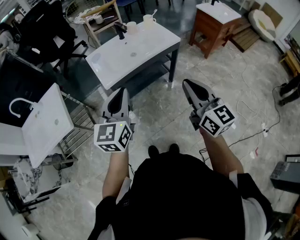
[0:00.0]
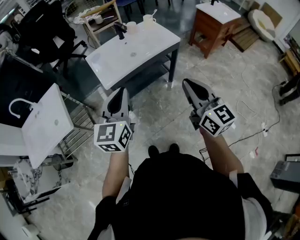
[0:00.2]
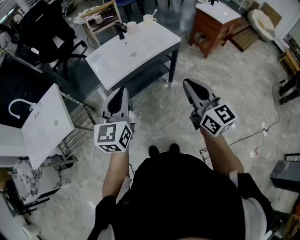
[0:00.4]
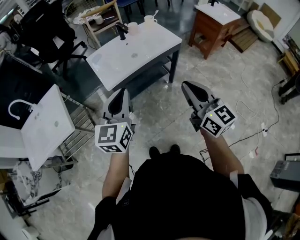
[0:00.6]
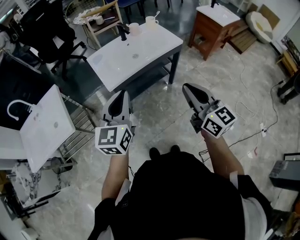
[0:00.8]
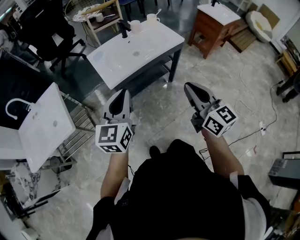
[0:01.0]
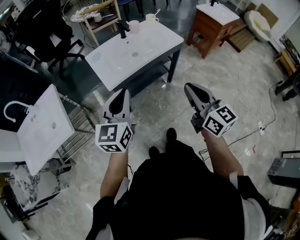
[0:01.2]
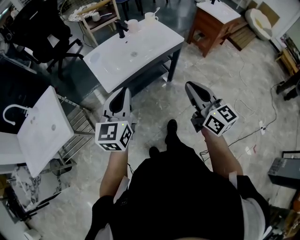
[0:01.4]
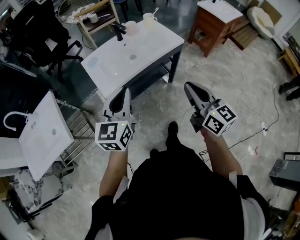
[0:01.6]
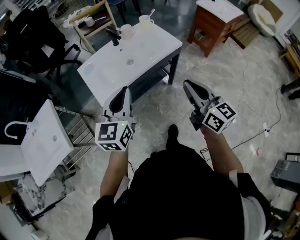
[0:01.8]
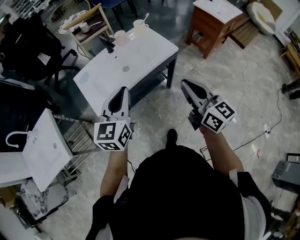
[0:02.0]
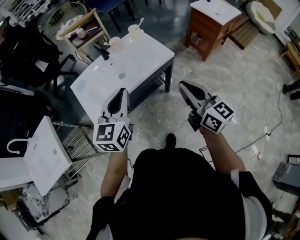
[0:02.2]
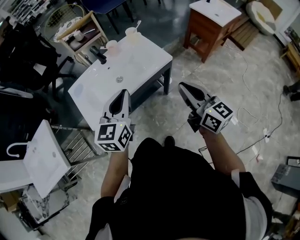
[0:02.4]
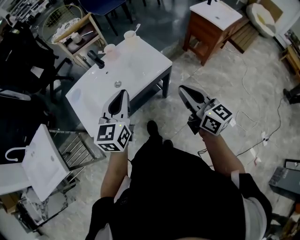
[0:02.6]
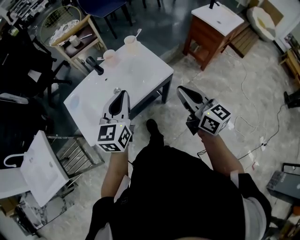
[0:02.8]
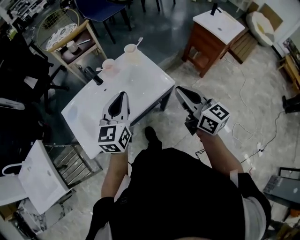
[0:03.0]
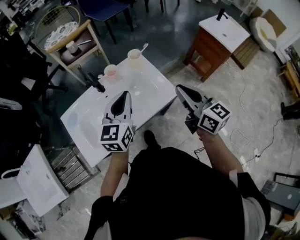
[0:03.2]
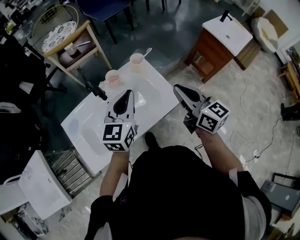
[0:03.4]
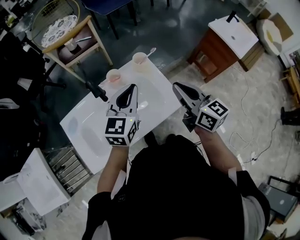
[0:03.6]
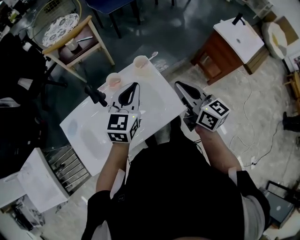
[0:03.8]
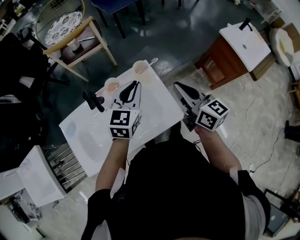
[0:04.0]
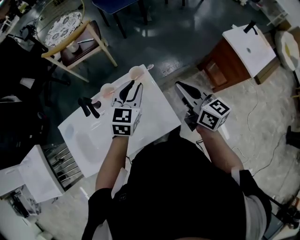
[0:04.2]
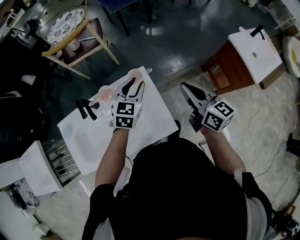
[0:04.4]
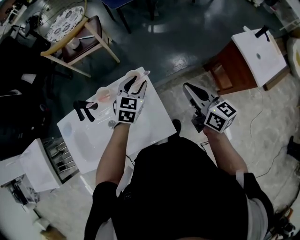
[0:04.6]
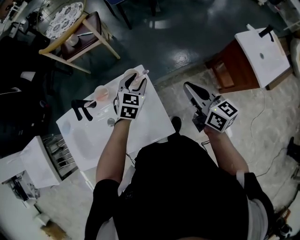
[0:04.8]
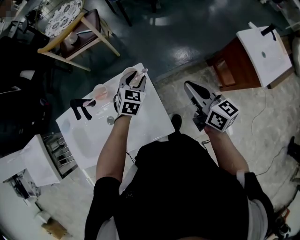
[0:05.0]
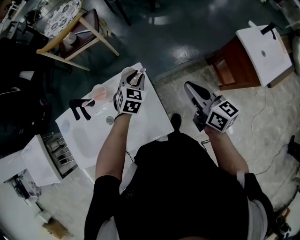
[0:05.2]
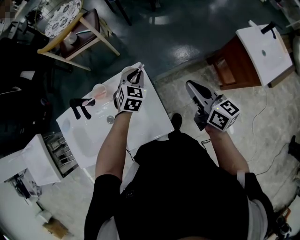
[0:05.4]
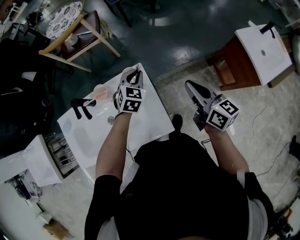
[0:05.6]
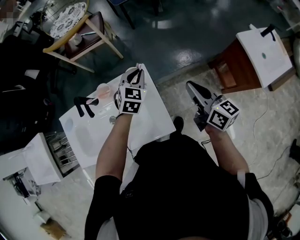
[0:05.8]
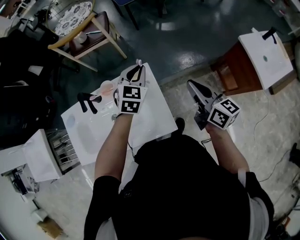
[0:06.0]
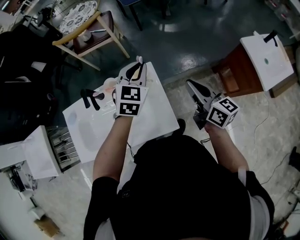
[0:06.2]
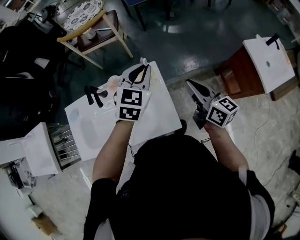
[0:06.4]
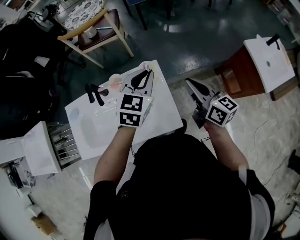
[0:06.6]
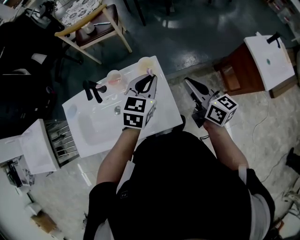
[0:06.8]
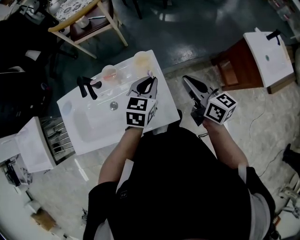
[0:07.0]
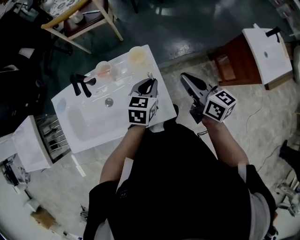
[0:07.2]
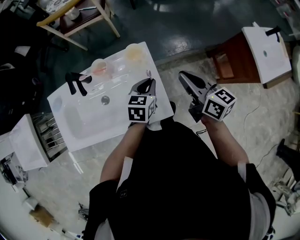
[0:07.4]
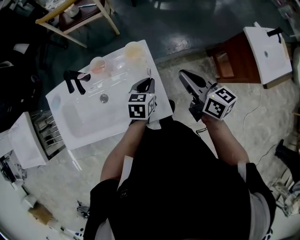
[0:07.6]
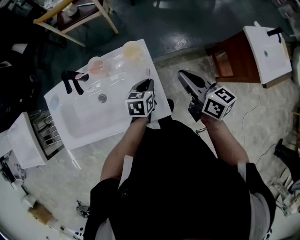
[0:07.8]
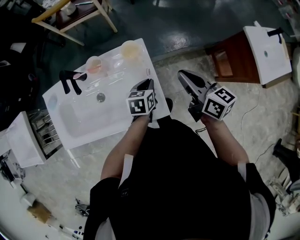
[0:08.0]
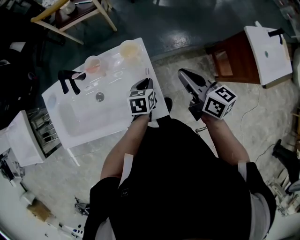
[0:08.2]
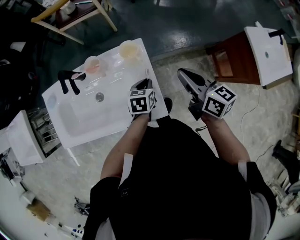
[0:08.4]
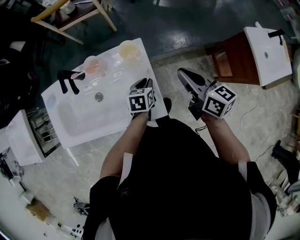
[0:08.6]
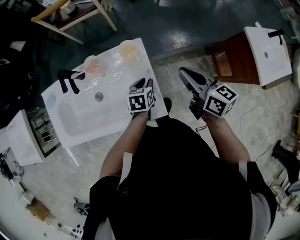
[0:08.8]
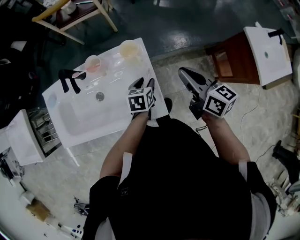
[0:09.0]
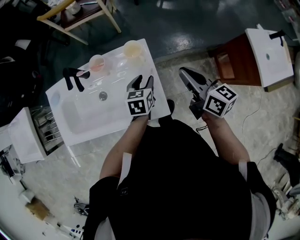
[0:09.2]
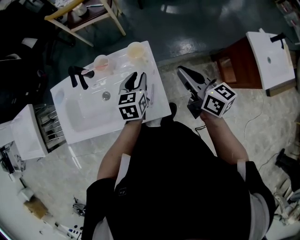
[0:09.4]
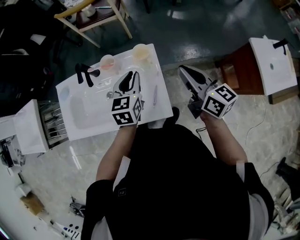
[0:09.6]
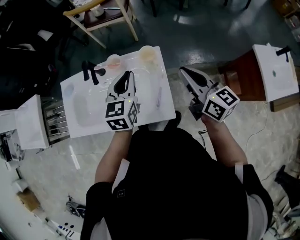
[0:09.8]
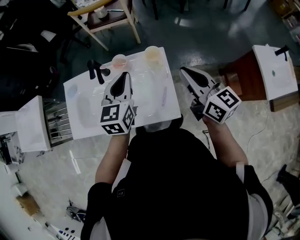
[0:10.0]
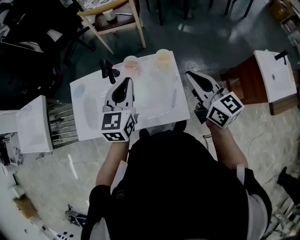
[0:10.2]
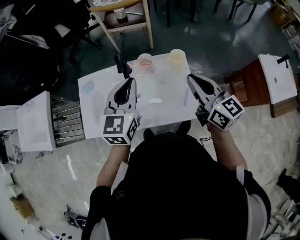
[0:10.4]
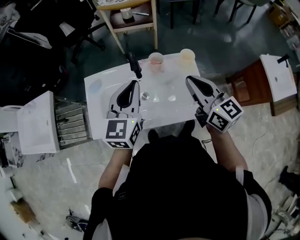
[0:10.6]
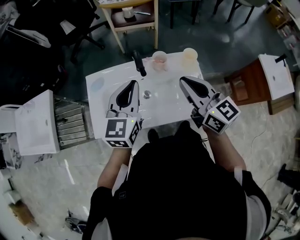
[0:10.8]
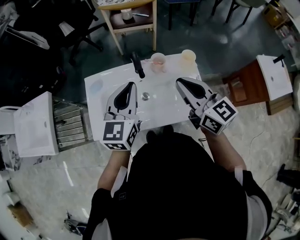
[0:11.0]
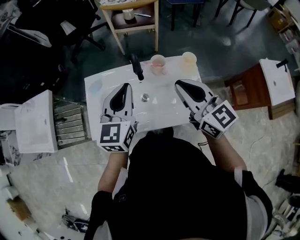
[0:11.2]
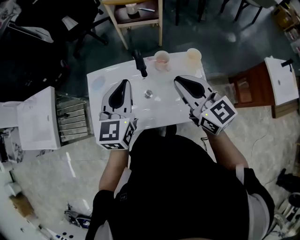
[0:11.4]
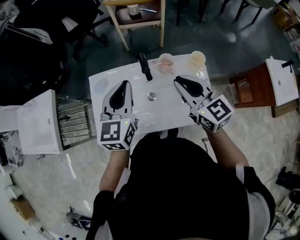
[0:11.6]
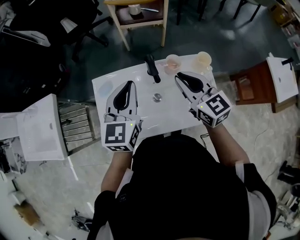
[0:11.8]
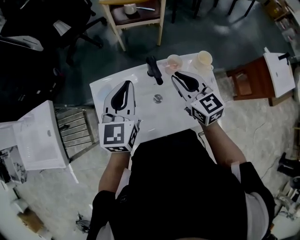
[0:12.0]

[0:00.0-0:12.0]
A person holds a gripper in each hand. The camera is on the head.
0:00.0 to 0:01.6: Both grippers move forward, approximately 10 cm.
0:01.6 to 0:03.0: The grippers both shift forward and to the right by roughly 35 cm.
0:03.0 to 0:04.4: The right gripper shifts some 35 cm forward; the left gripper shifts approximately 35 cm forward and to the right, turns by approximately 20 degrees, and opens up.
0:04.4 to 0:06.0: The left gripper travels downward and back again, about 10 cm each way, and closes.
0:06.0 to 0:07.6: The left gripper shifts some 20 cm downward and backward, and turns by about 40 degrees. Meanwhile the right gripper ends up about 5 cm from where it was.
0:07.6 to 0:09.0: The left gripper is displaced downward by about 5 cm, and opens its fingers.
0:09.0 to 0:10.4: The right gripper heads to the left and upward, covering some 25 cm, and rotates roughly 20 degrees. The left gripper travels upward and to the left by approximately 40 cm, angles its fingers upward, by approximately 40 degrees, and closes up.
0:10.4 to 0:12.0: Both grippers move to the left and forward, approximately 20 cm.

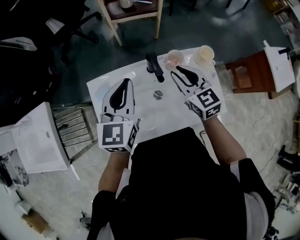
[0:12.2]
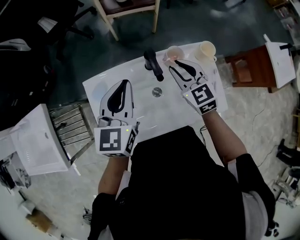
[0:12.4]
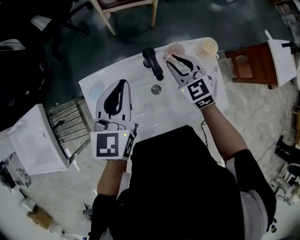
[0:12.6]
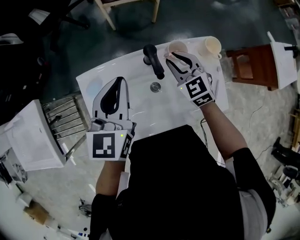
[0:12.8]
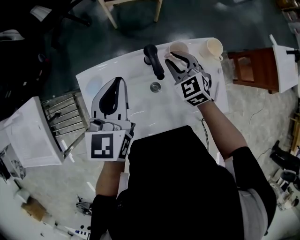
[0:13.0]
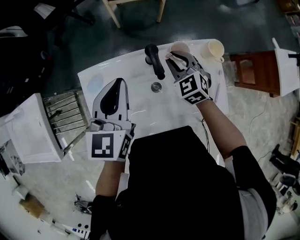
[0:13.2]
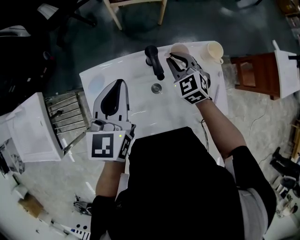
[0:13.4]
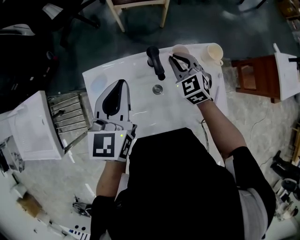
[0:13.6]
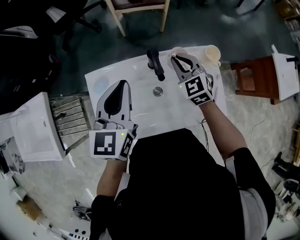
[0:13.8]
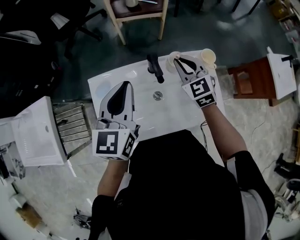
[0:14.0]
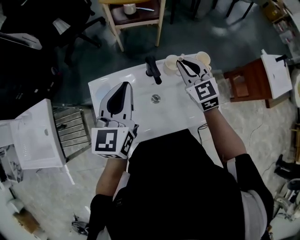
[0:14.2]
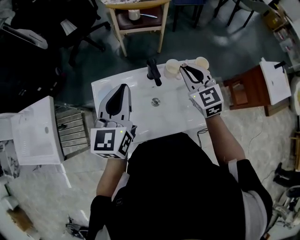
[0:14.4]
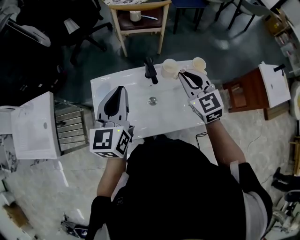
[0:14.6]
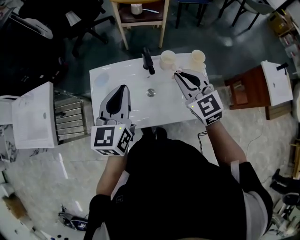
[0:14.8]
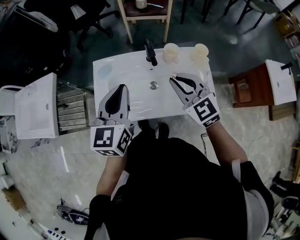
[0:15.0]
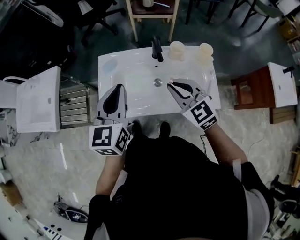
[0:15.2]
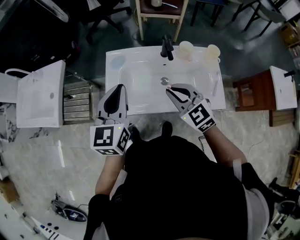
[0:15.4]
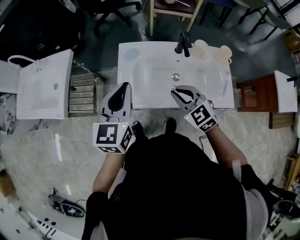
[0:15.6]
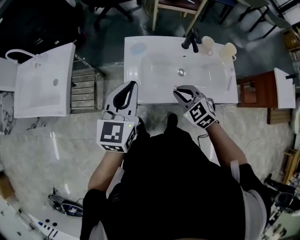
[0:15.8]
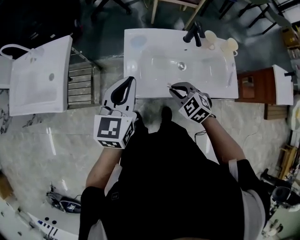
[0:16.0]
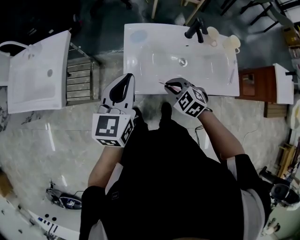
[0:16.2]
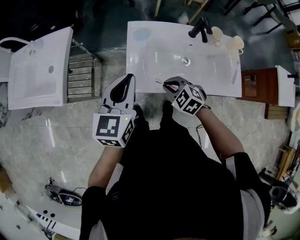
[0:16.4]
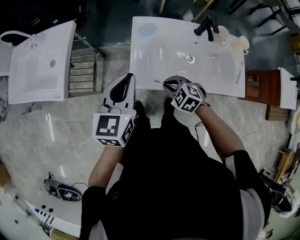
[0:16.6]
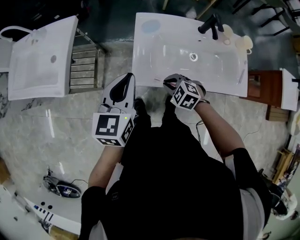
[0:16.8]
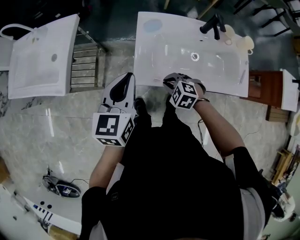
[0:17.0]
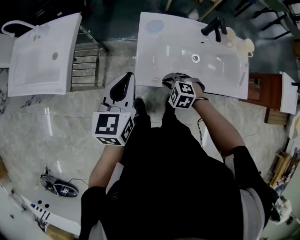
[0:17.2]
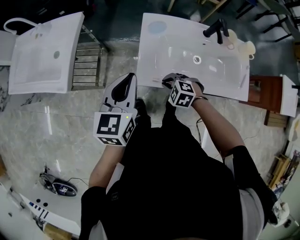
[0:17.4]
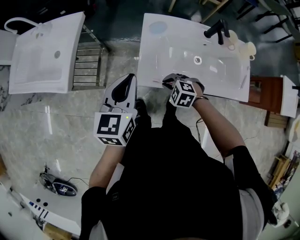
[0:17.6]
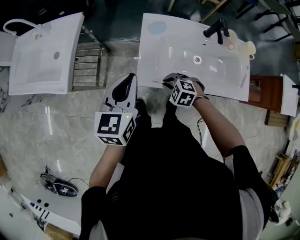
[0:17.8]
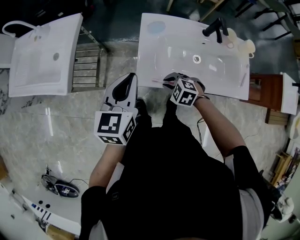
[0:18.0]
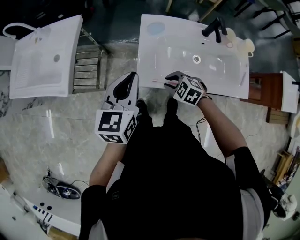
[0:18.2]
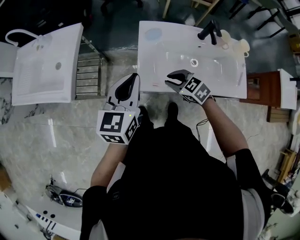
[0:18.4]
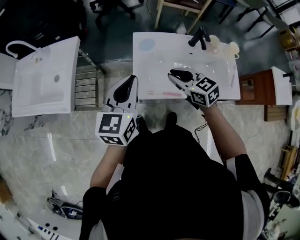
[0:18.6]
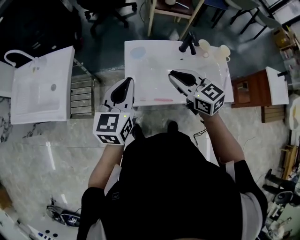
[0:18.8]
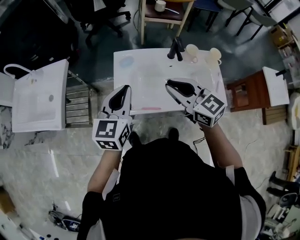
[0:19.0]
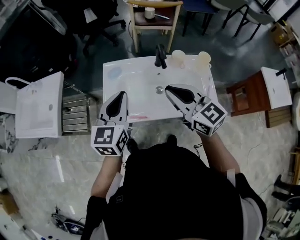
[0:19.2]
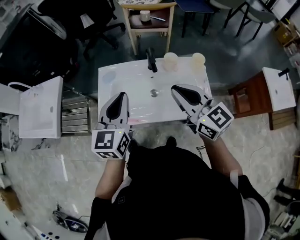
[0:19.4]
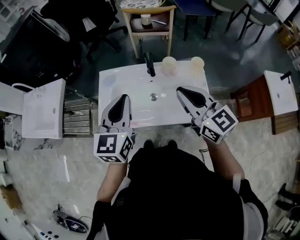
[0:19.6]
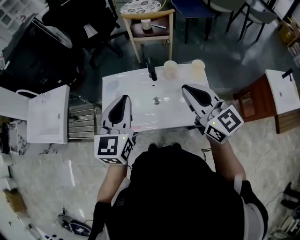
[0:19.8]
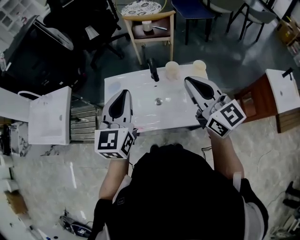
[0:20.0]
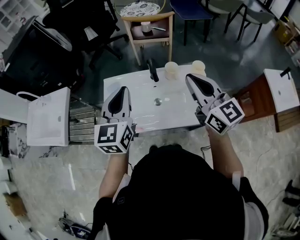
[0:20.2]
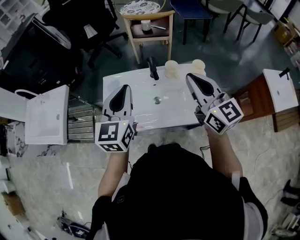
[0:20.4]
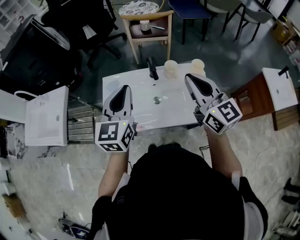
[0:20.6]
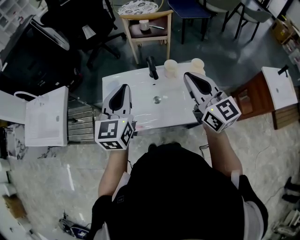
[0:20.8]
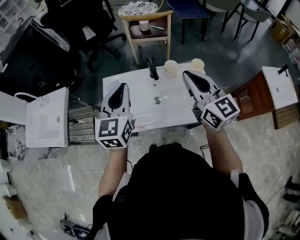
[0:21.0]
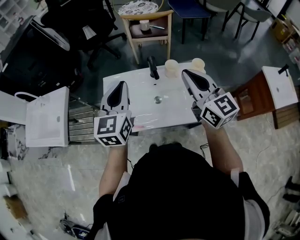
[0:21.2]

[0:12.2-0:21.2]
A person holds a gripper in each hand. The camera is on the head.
0:12.2 to 0:13.8: The right gripper moves forward, approximately 5 cm, and swivels approximately 20 degrees.
0:13.8 to 0:15.2: The grippers both shift backward by roughly 20 cm. The right gripper turns by roughly 20 degrees.
0:15.2 to 0:16.6: The right gripper shifts approximately 30 cm to the left and downward, and angles its fingers downward, by roughly 30 degrees, while the left gripper travels to the left by roughly 20 cm.
0:16.6 to 0:18.2: The grippers make only small movements.
0:18.2 to 0:19.8: The left gripper travels to the right and upward by some 30 cm. The right gripper is displaced upward and to the right by about 50 cm, and tilts its fingers about 60 degrees upward.
0:19.8 to 0:21.2: The left gripper is displaced forward by approximately 5 cm.

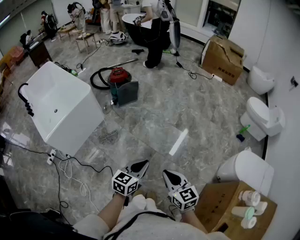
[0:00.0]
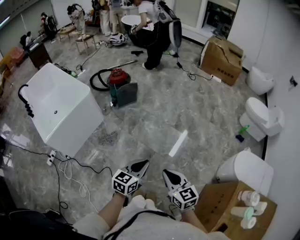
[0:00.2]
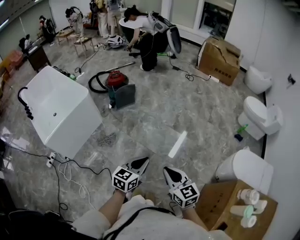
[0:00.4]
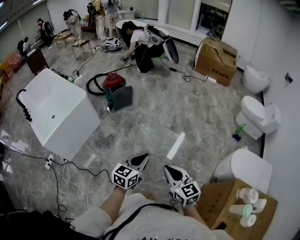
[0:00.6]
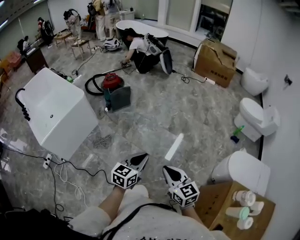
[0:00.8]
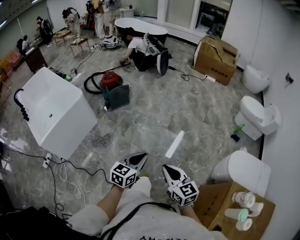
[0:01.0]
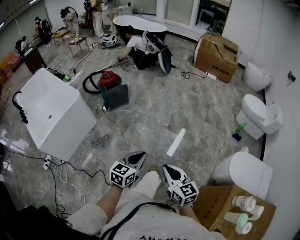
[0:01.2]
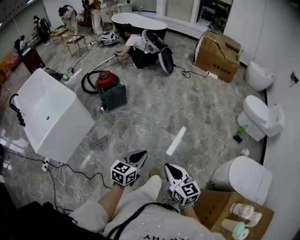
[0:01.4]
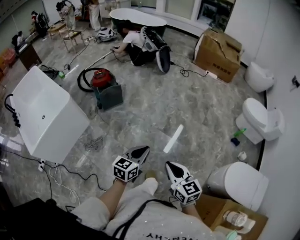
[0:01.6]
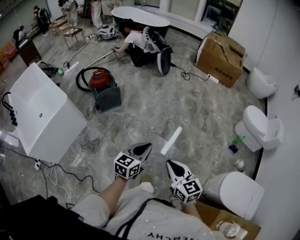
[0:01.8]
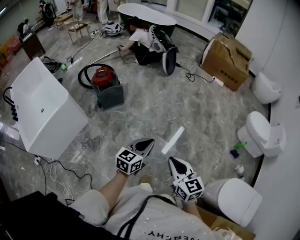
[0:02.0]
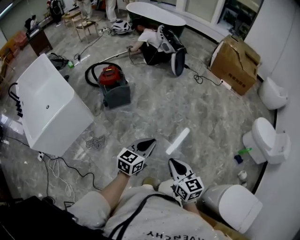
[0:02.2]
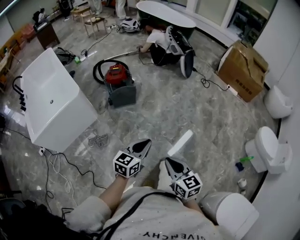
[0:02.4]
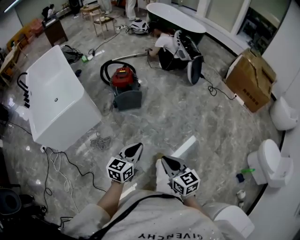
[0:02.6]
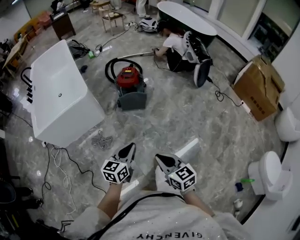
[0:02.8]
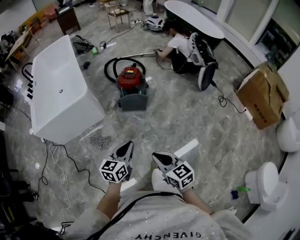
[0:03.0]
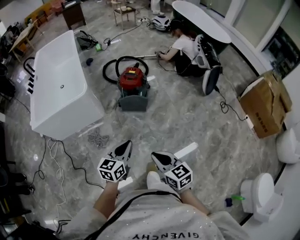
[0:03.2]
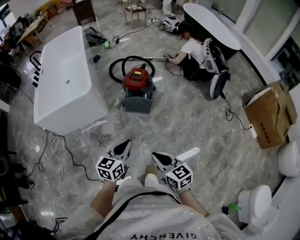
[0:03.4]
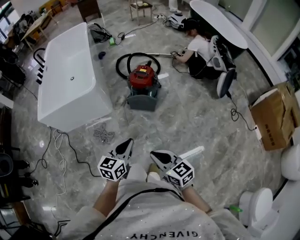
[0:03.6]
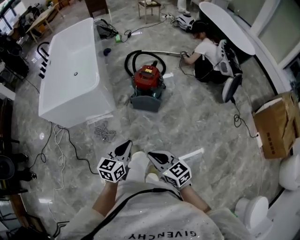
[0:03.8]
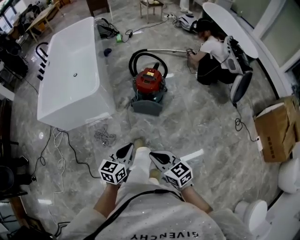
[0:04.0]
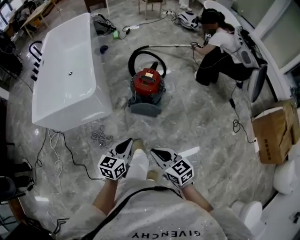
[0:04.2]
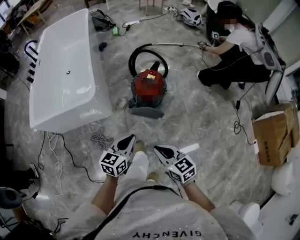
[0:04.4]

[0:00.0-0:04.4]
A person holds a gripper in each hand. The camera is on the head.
0:00.0 to 0:01.4: The grippers both shift forward and to the right by approximately 15 cm.
0:01.4 to 0:03.0: The right gripper ends up some 40 cm from where it was, and rotates roughly 40 degrees. The left gripper ends up some 35 cm from where it was, and swivels some 40 degrees.
0:03.0 to 0:04.4: Both grippers travel together forward, roughly 25 cm.
